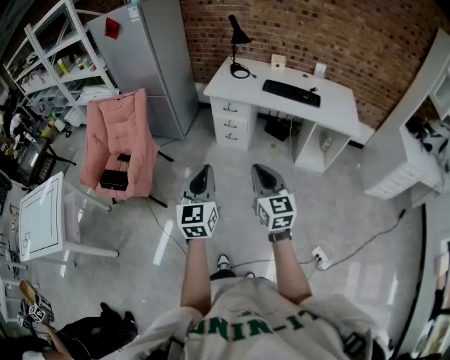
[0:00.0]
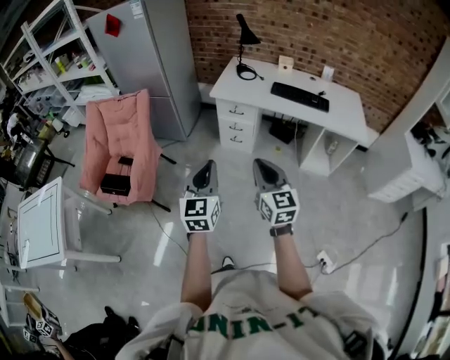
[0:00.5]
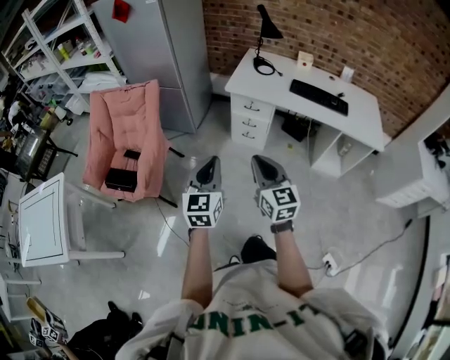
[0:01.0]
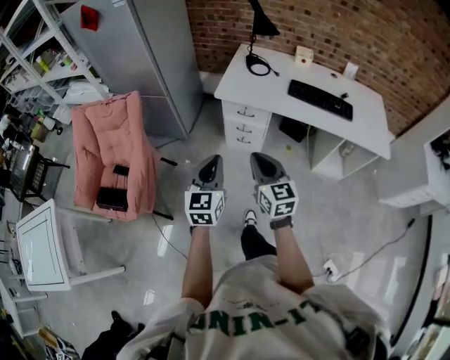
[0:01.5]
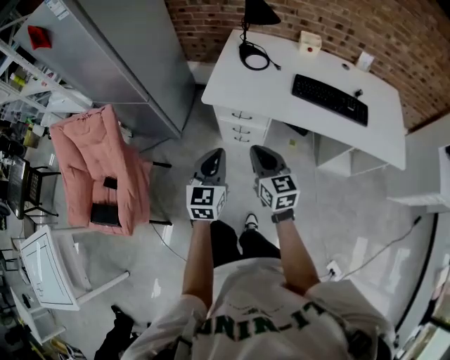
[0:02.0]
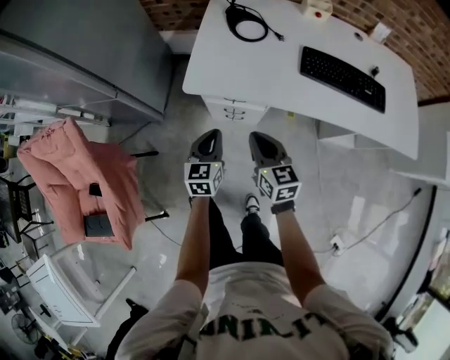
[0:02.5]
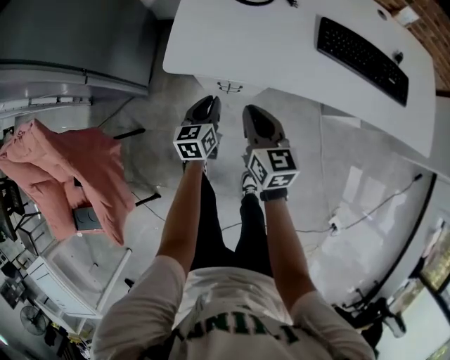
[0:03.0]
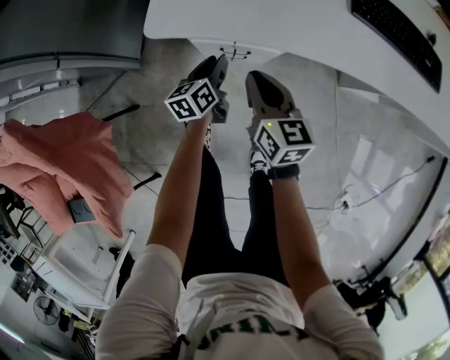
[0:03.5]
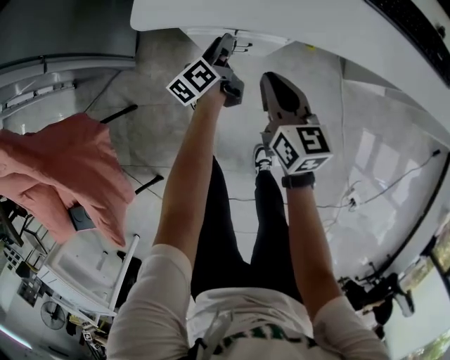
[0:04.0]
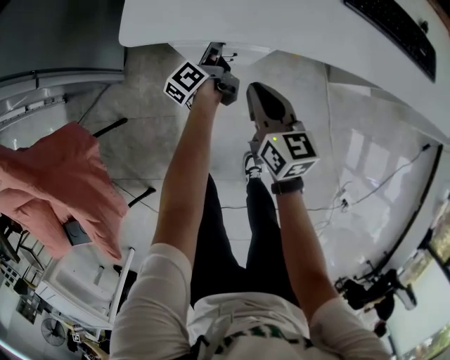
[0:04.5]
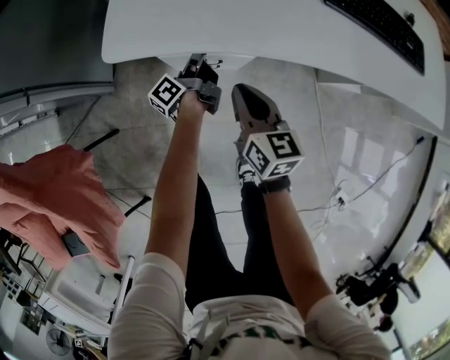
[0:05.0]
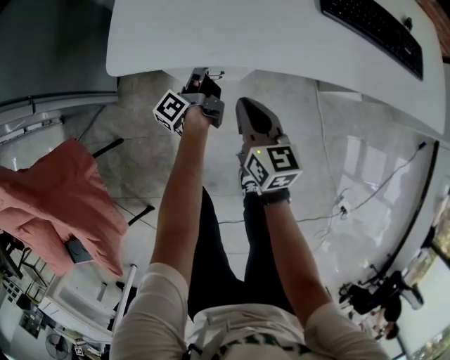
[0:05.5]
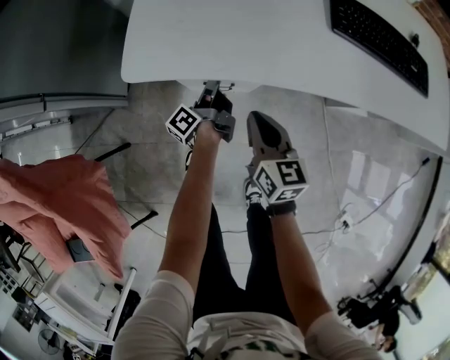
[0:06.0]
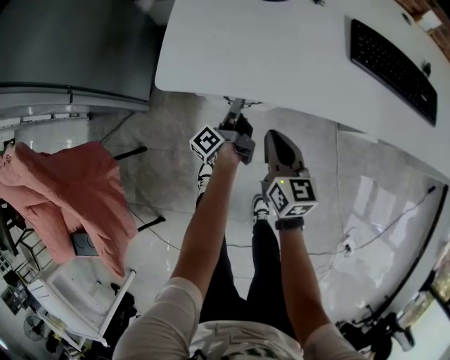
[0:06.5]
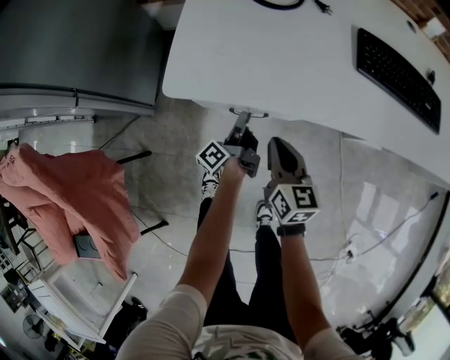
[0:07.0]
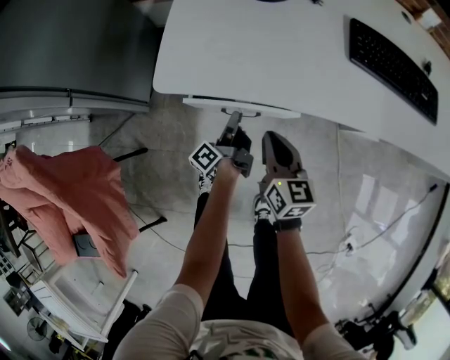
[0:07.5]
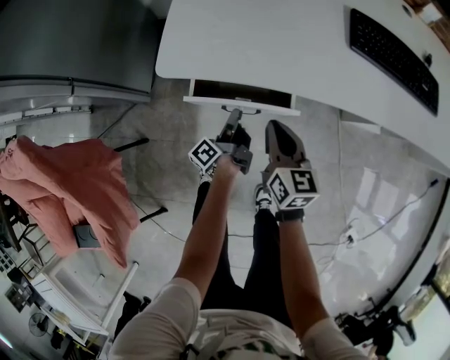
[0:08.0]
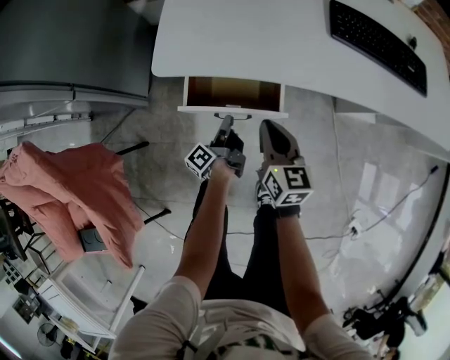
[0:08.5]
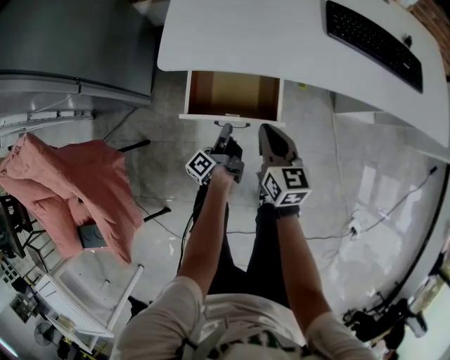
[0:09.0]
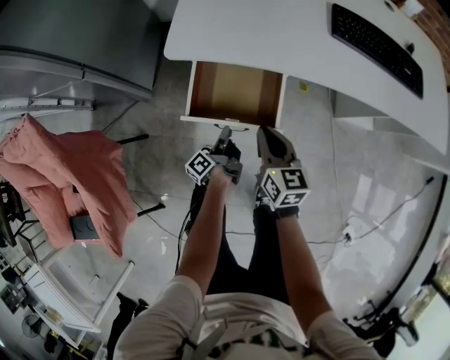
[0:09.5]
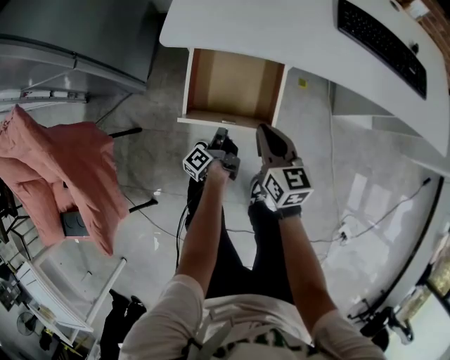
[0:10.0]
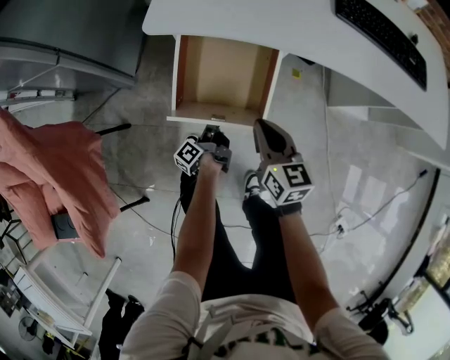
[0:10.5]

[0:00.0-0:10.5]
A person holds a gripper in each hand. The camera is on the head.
0:00.0 to 0:02.0: Both grippers are carried forward, about 50 cm.
0:02.0 to 0:04.0: The left gripper goes about 50 cm downward and forward, twists roughly 60 degrees counterclockwise, seen from behind, and opens its fingers, while the right gripper moves downward and forward, approximately 35 cm, and changes its angle by about 20 degrees.
0:04.0 to 0:06.5: The left gripper changes its angle by approximately 30 degrees, and closes its fingers.
0:06.5 to 0:08.5: The left gripper is displaced backward by about 10 cm.
0:08.5 to 0:10.5: The left gripper travels downward and backward by roughly 15 cm. Meanwhile the right gripper heads backward, covering about 5 cm.

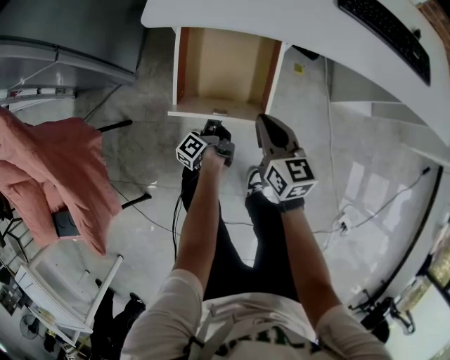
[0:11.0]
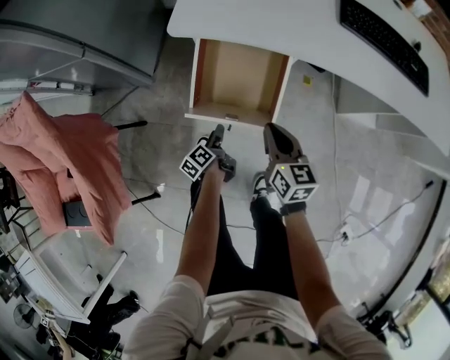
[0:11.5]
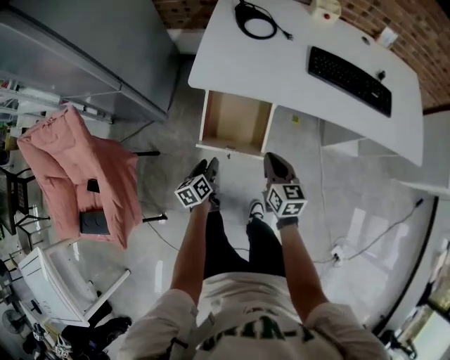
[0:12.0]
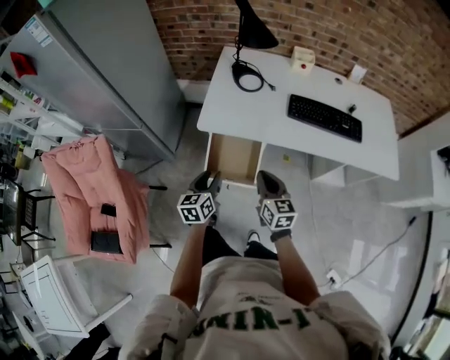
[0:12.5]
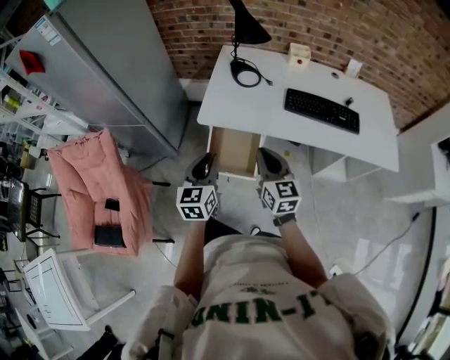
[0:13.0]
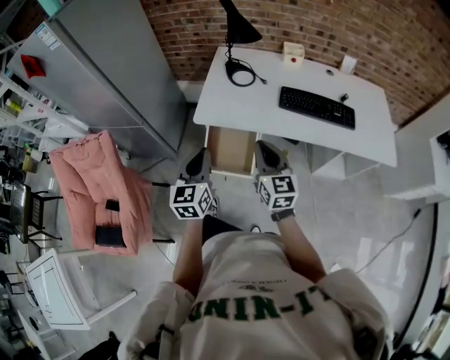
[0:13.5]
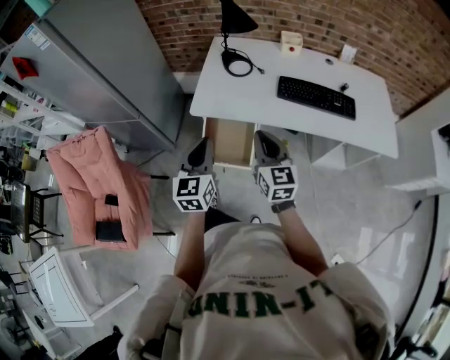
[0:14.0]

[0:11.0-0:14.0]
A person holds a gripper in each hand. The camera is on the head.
0:11.0 to 0:12.5: The left gripper shifts some 40 cm upward, twists about 70 degrees clockwise, seen from behind, and opens its fingers, while the right gripper shifts approximately 25 cm upward.
0:12.5 to 0:14.0: The two grippers go approximately 15 cm upward. The left gripper rotates roughly 30 degrees, and closes up.

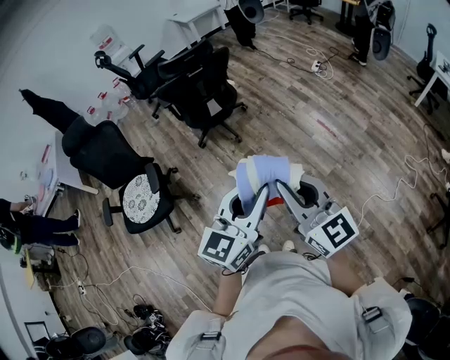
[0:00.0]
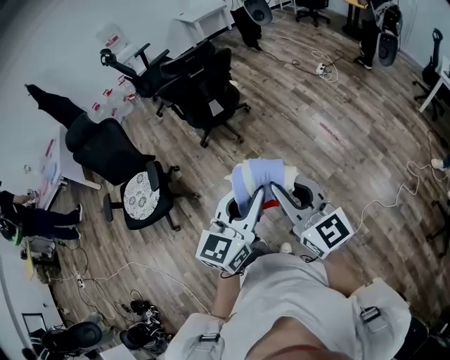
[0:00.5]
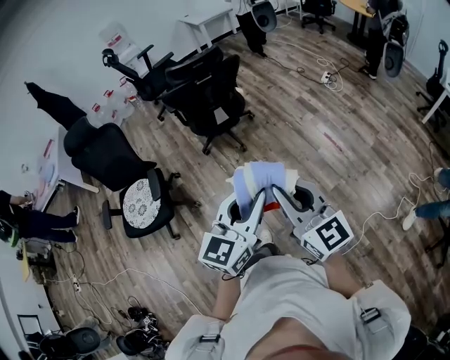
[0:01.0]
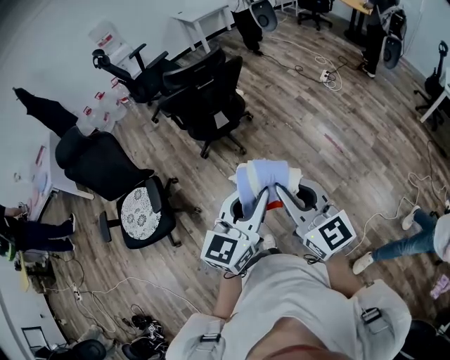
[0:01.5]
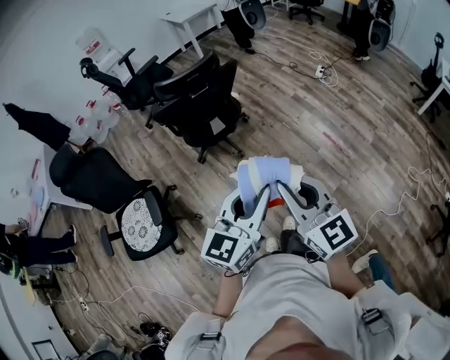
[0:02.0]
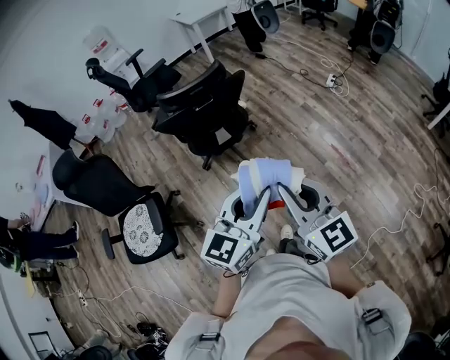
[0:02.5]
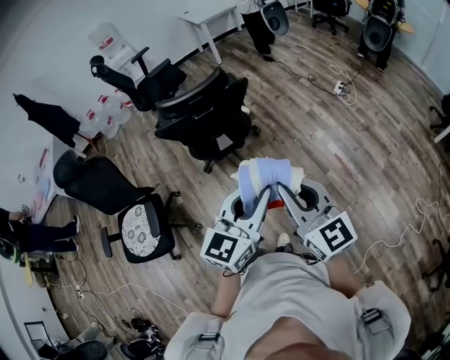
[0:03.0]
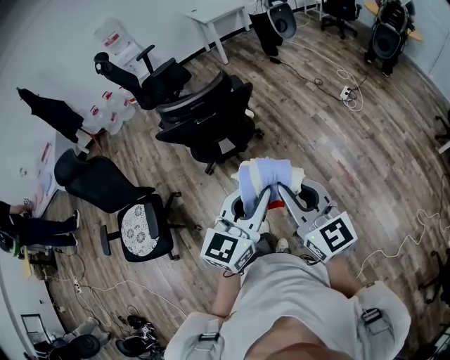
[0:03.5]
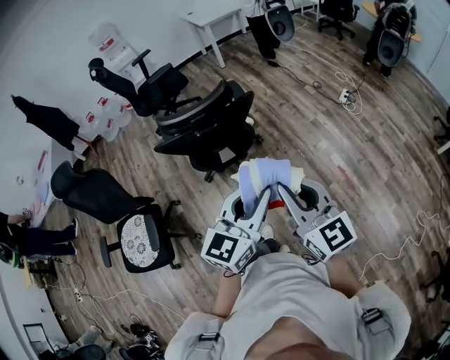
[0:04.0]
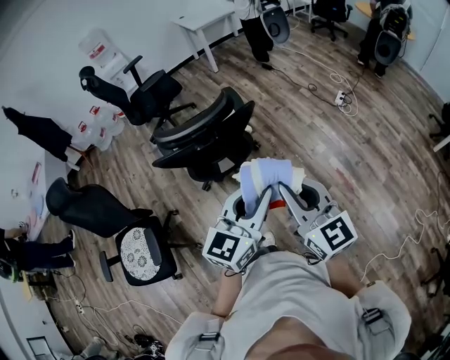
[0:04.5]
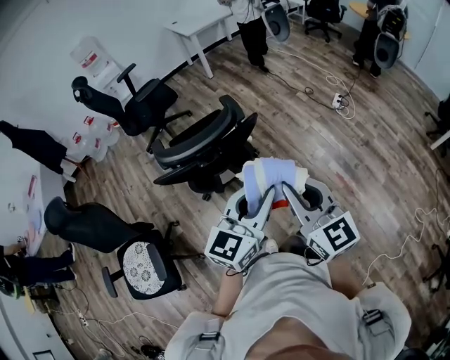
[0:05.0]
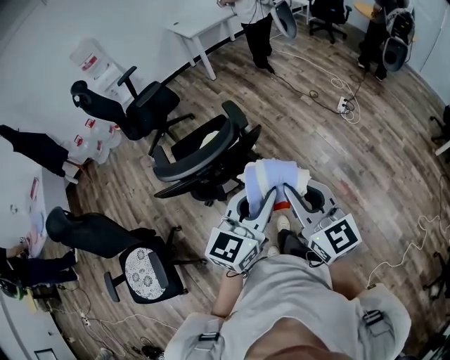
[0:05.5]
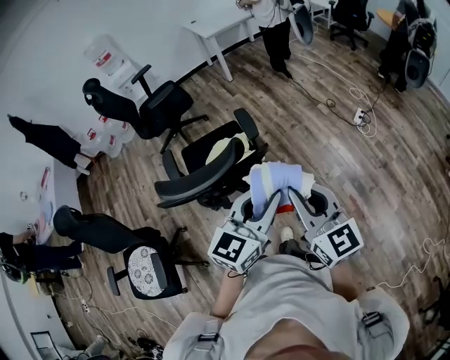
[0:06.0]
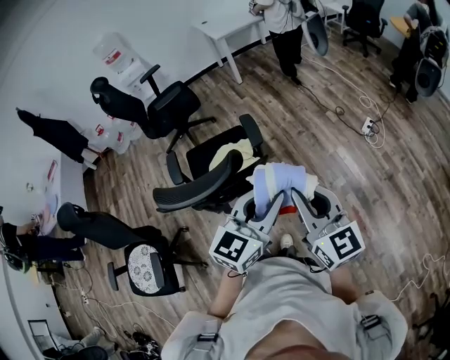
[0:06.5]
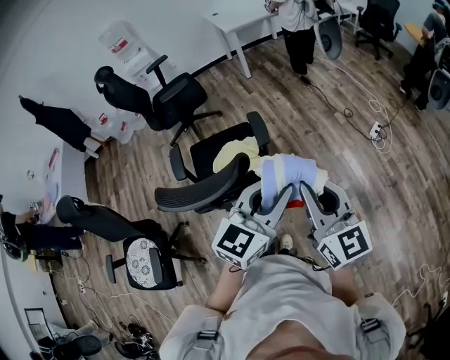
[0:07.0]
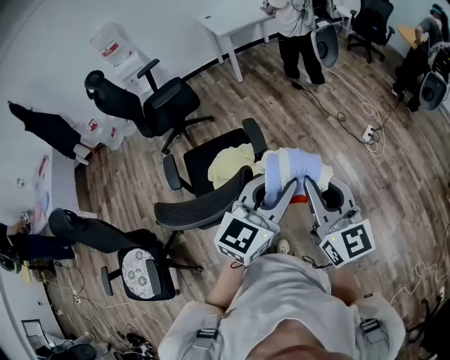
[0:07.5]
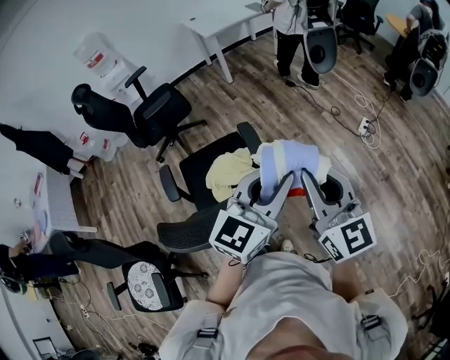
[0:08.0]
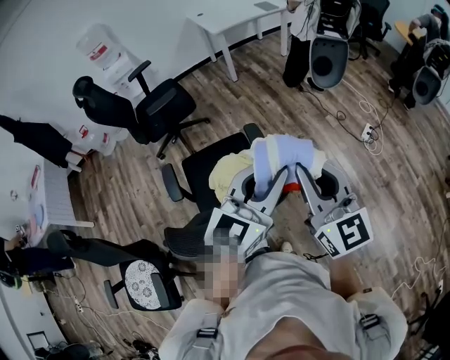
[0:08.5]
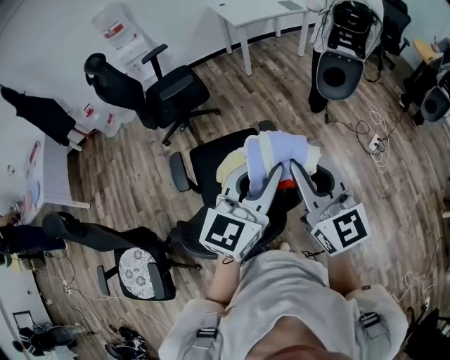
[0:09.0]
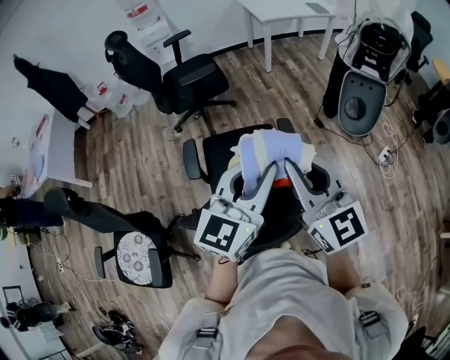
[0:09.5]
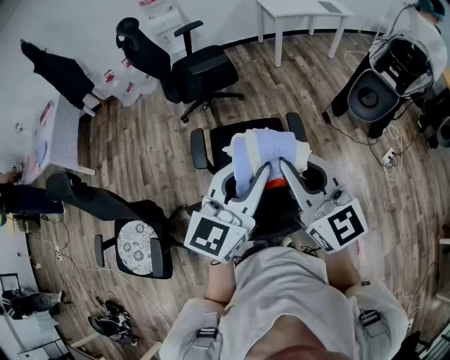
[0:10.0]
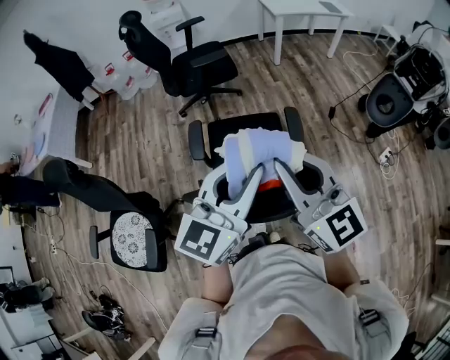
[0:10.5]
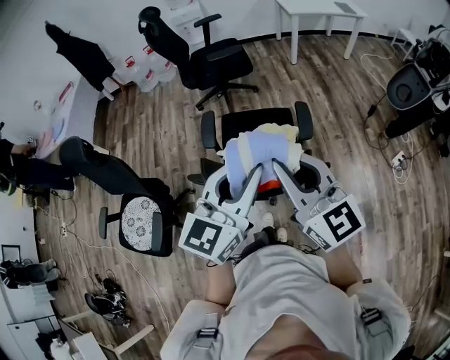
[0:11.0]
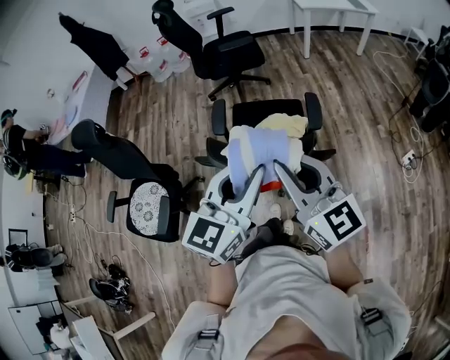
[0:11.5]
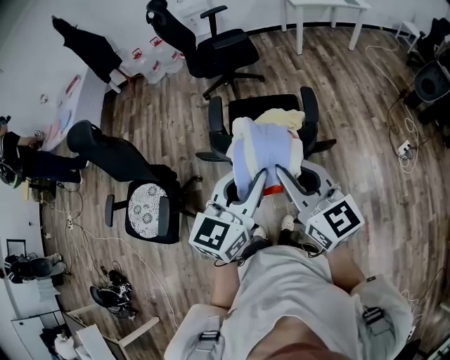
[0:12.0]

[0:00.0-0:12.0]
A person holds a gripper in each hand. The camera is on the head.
0:00.0 to 0:02.0: Both grippers move forward, about 20 cm.
0:02.0 to 0:04.0: Both grippers travel together forward, approximately 20 cm.
0:04.0 to 0:06.0: The grippers both shift forward by roughly 25 cm.
0:06.0 to 0:08.0: The grippers both shift forward by about 15 cm.
0:08.0 to 0:10.0: Both grippers travel together to the left, about 25 cm. The right gripper rotates about 30 degrees, while the left gripper swivels about 20 degrees.
0:10.0 to 0:12.0: The grippers both shift backward by roughly 15 cm.

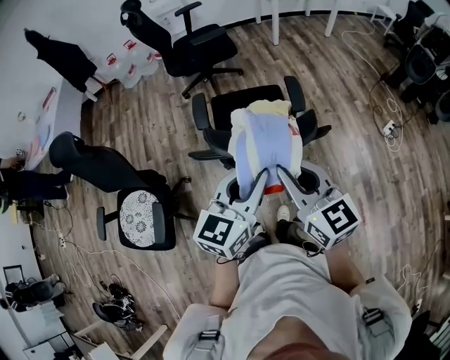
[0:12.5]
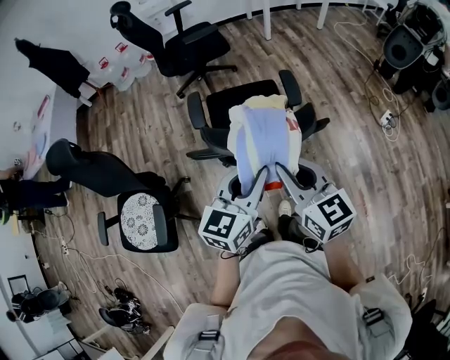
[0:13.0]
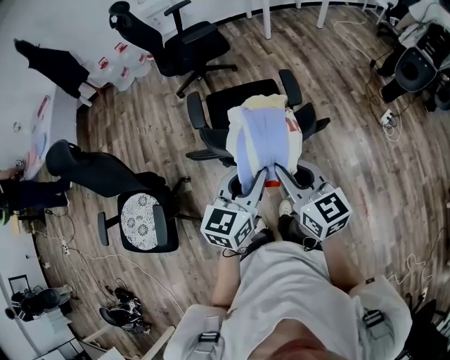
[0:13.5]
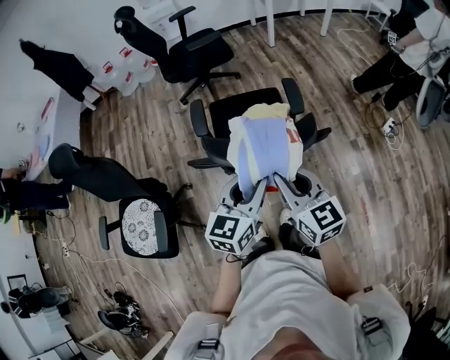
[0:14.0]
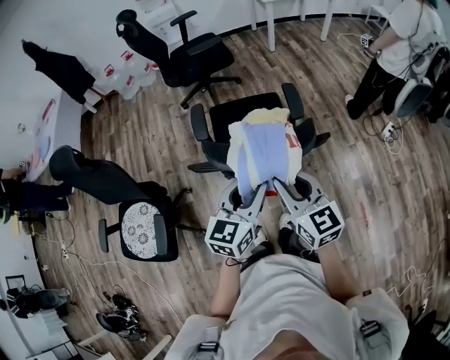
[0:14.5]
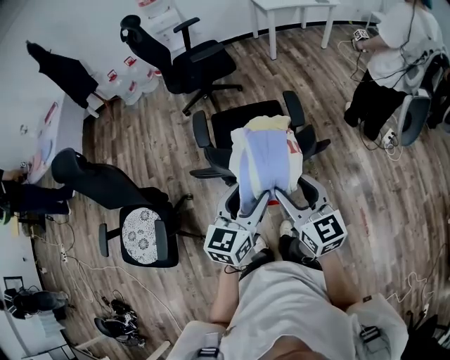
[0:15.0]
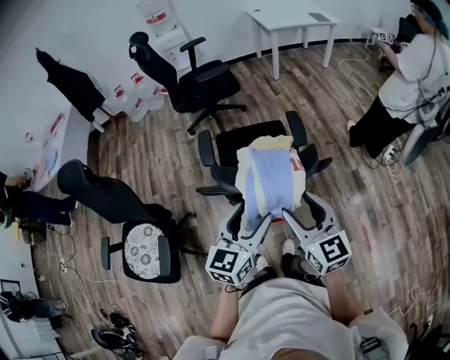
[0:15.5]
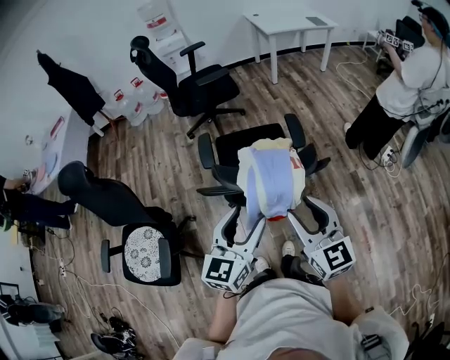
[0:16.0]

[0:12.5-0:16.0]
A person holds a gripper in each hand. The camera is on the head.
0:12.5 to 0:14.5: The grippers both shift downward by approximately 5 cm.
0:14.5 to 0:16.0: The left gripper ends up some 5 cm from where it was, and opens up. The right gripper moves roughly 5 cm, and opens its fingers.
